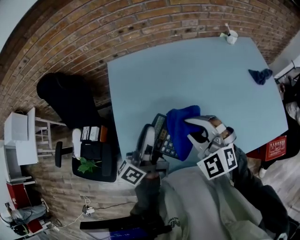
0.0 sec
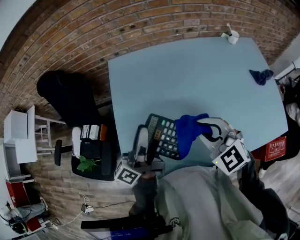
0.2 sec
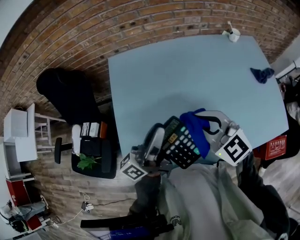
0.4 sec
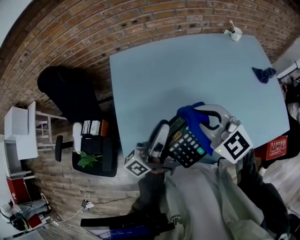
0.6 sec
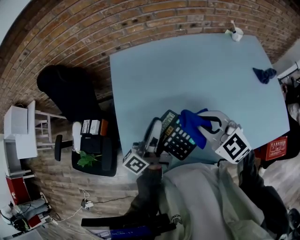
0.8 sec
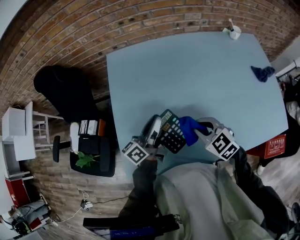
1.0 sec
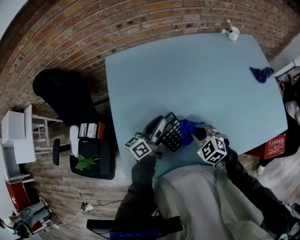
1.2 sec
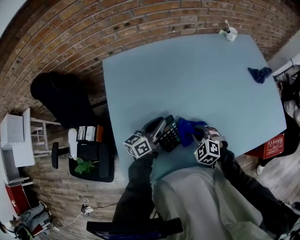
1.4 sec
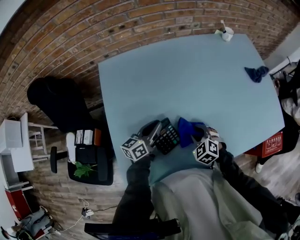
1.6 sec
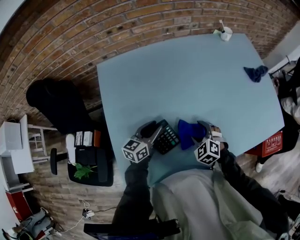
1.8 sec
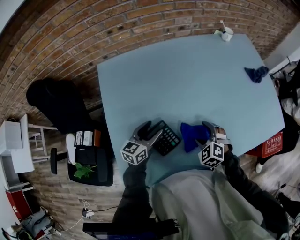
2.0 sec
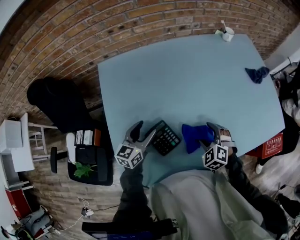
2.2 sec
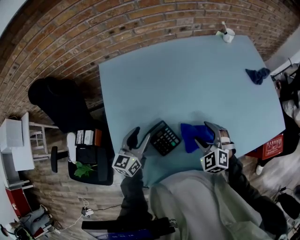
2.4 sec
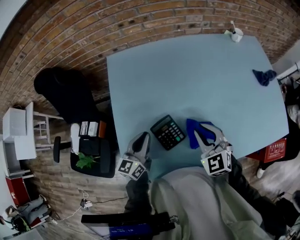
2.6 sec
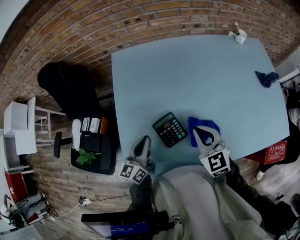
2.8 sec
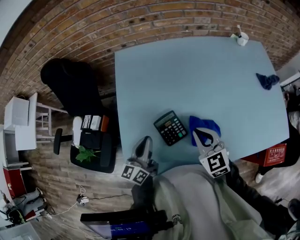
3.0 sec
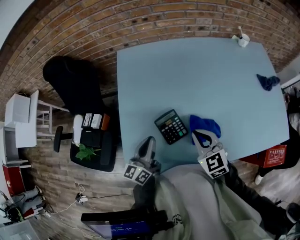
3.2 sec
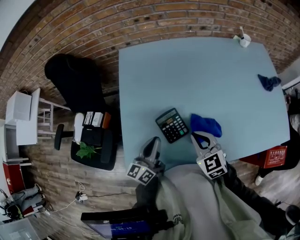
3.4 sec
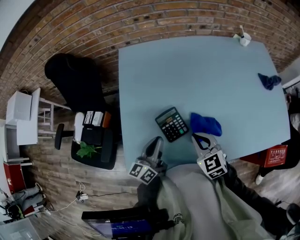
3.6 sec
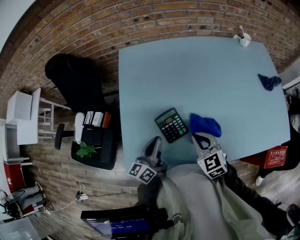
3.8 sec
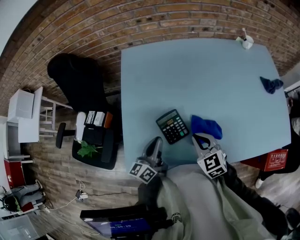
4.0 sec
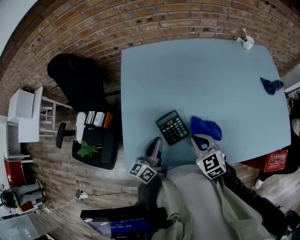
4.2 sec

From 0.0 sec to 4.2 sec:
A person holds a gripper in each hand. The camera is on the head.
From 0.0 sec to 1.4 sec: The two grippers go roughly 20 cm downward. The left gripper swivels roughly 30 degrees, while the right gripper changes its angle by about 30 degrees.
From 1.4 sec to 2.8 sec: The right gripper moves upward, some 15 cm, turns by roughly 40 degrees, and opens, then closes again; the left gripper is displaced backward and to the left by approximately 15 cm, changes its angle by roughly 30 degrees, and opens, then closes again.
From 2.8 sec to 4.2 sec: The right gripper travels downward by roughly 5 cm.

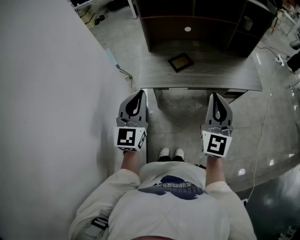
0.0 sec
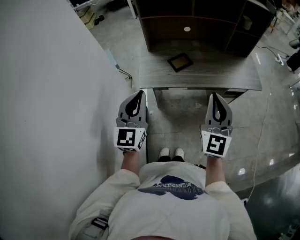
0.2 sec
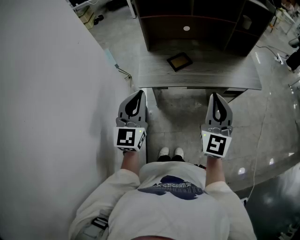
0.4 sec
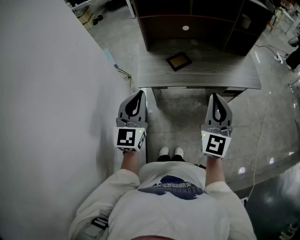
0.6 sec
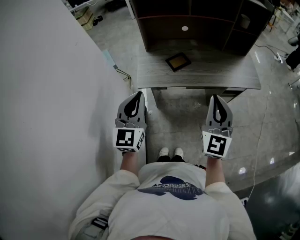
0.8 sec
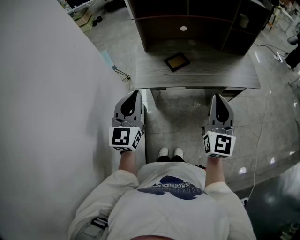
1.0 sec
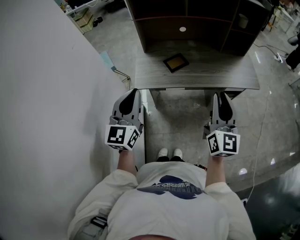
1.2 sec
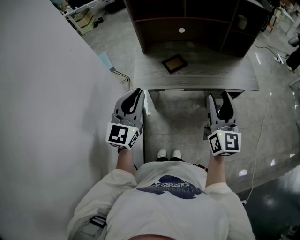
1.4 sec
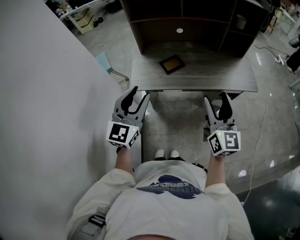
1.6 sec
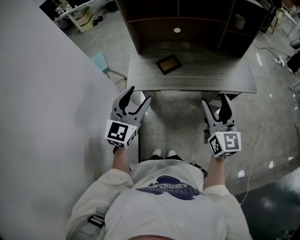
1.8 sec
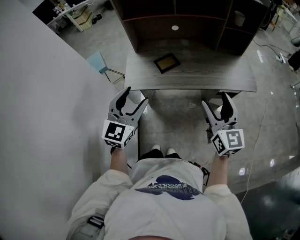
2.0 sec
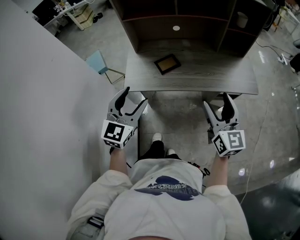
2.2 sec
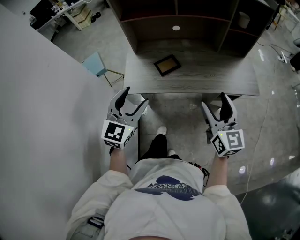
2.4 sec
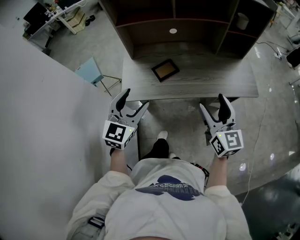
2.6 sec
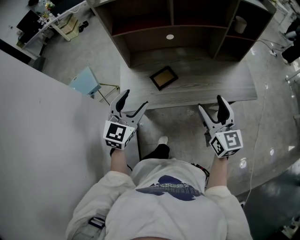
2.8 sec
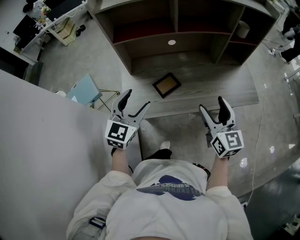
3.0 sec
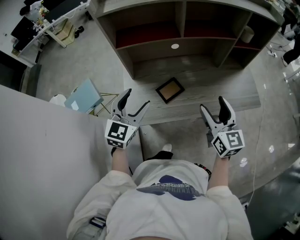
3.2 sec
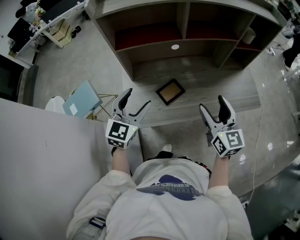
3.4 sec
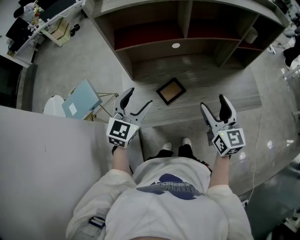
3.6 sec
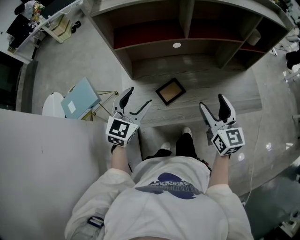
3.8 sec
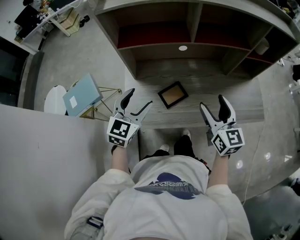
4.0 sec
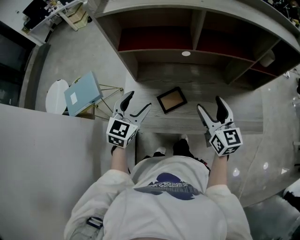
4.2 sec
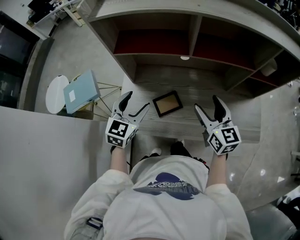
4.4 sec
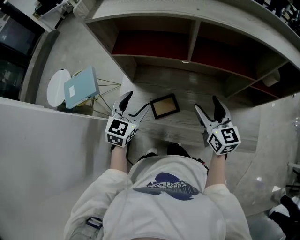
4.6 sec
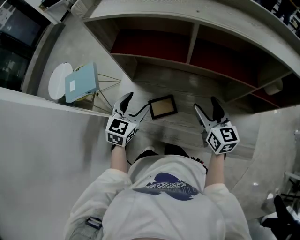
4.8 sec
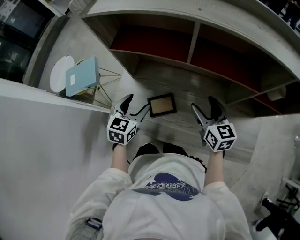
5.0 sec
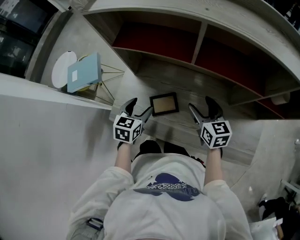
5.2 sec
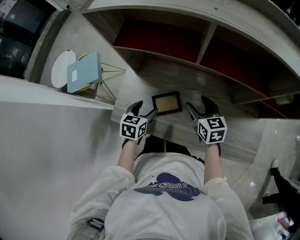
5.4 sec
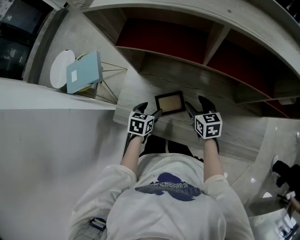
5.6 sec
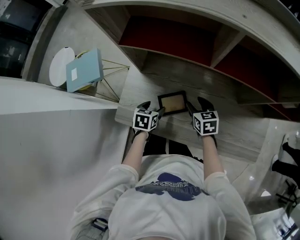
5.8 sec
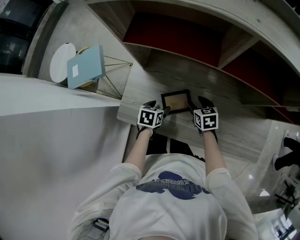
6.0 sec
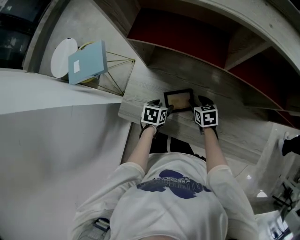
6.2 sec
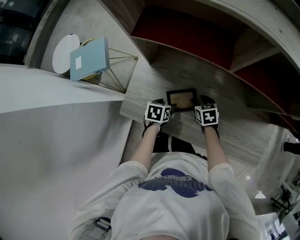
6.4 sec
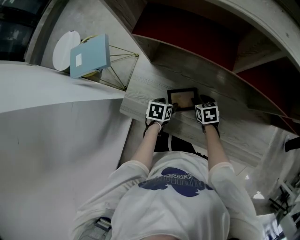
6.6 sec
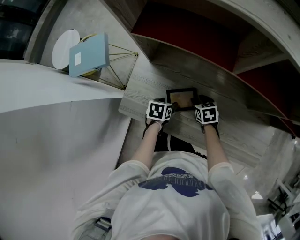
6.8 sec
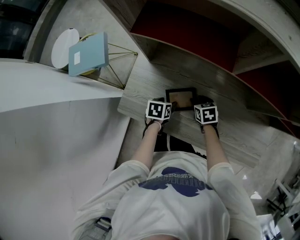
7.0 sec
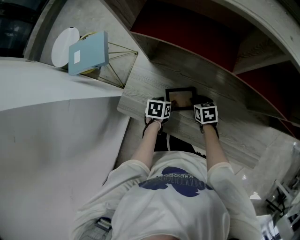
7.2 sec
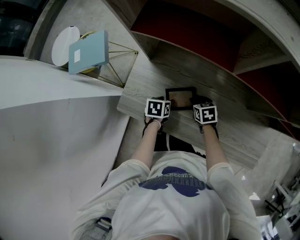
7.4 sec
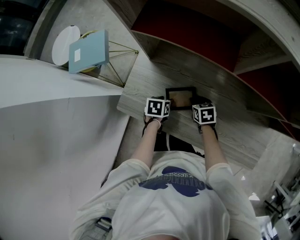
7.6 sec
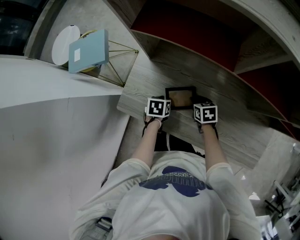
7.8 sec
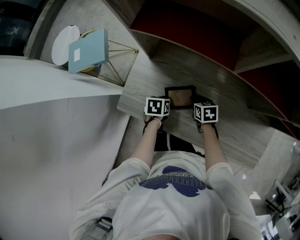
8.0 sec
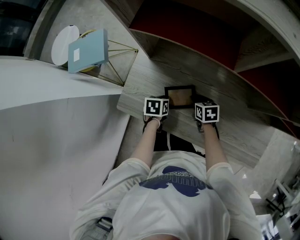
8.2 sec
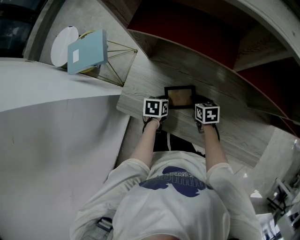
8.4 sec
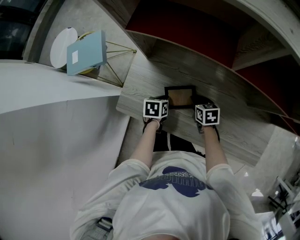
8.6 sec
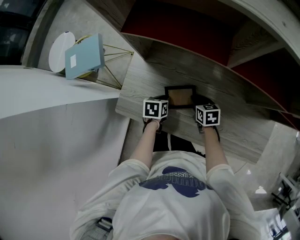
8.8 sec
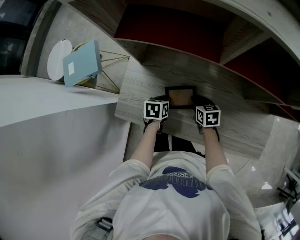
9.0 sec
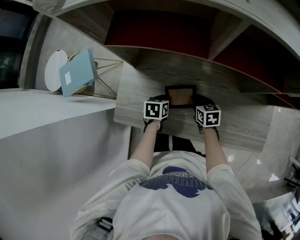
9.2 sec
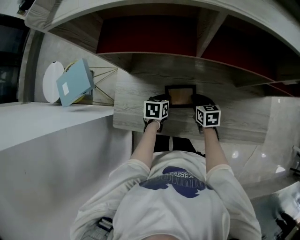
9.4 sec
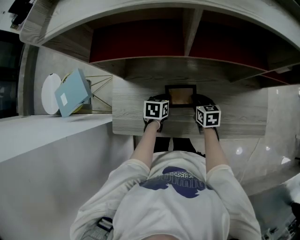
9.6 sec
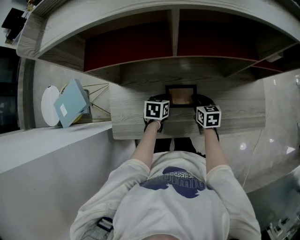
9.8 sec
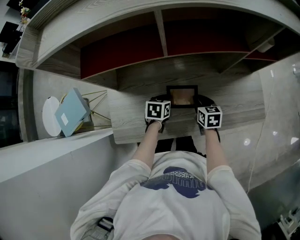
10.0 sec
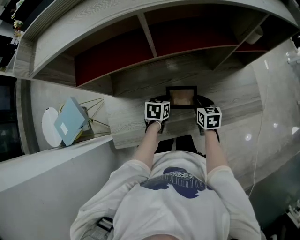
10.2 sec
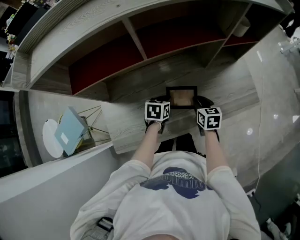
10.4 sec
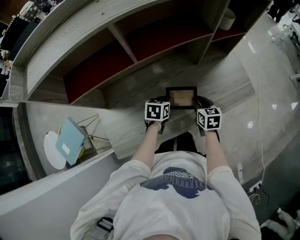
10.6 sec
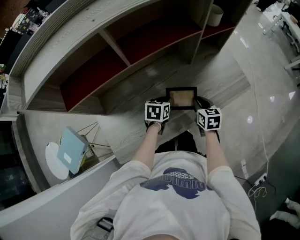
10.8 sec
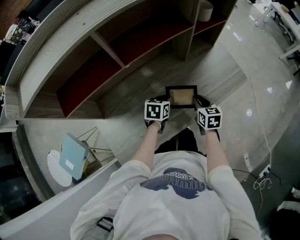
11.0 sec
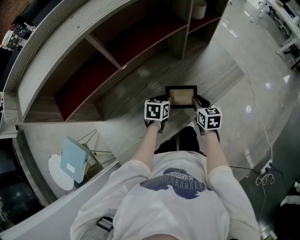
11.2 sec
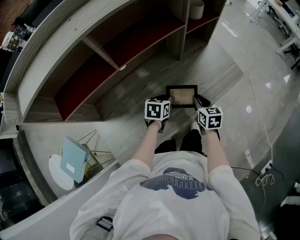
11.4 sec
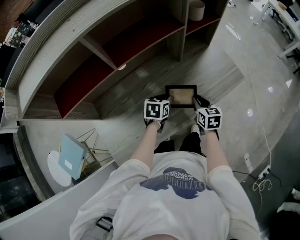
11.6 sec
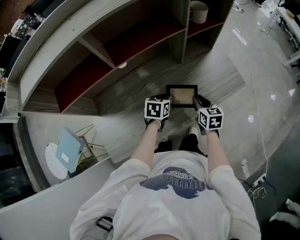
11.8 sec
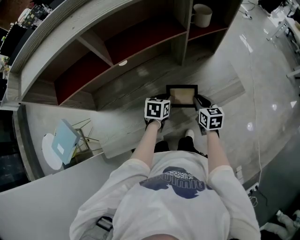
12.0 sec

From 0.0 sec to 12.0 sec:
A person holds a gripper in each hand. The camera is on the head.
From 0.0 sec to 1.6 sec: The two grippers go approximately 10 cm to the right. The right gripper changes its angle by about 20 degrees, and opens its fingers. The left gripper opens.
From 1.6 sec to 3.0 sec: The grippers both shift forward by some 20 cm. The left gripper opens.
From 3.0 sec to 4.4 sec: The right gripper shifts about 20 cm forward. The left gripper heads forward and downward, covering about 15 cm.
From 4.4 sec to 6.0 sec: Both grippers travel together downward, roughly 25 cm. The right gripper tilts its fingers some 40 degrees downward, while the left gripper angles its fingers downward, by approximately 30 degrees.
From 6.0 sec to 7.6 sec: The right gripper moves downward, some 5 cm, and closes up.
From 7.6 sec to 9.0 sec: The left gripper closes up.
From 9.0 sec to 10.4 sec: The right gripper moves about 20 cm, and swivels about 40 degrees, while the left gripper shifts by approximately 15 cm, and changes its angle by some 40 degrees.
From 10.4 sec to 12.0 sec: The two grippers go approximately 10 cm to the right.

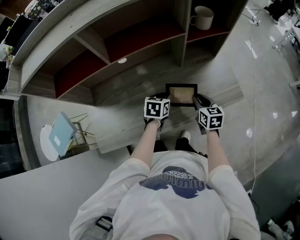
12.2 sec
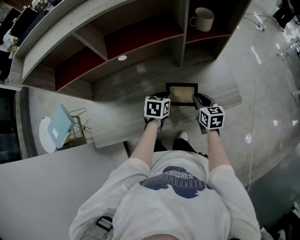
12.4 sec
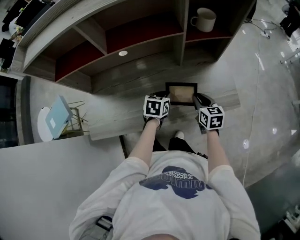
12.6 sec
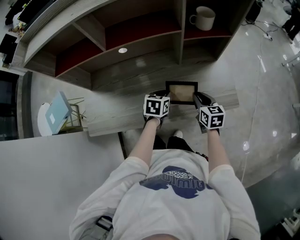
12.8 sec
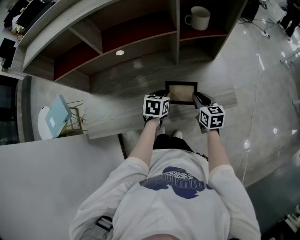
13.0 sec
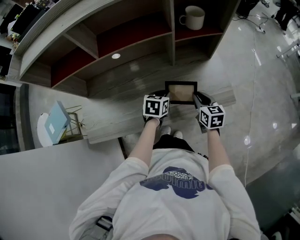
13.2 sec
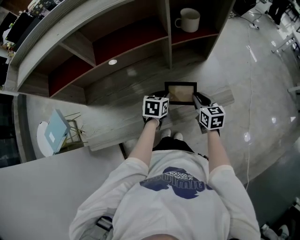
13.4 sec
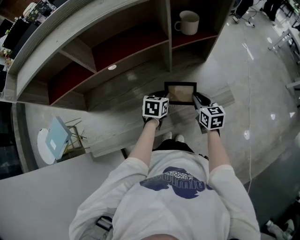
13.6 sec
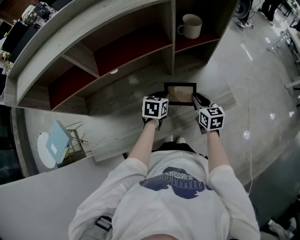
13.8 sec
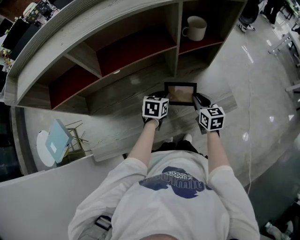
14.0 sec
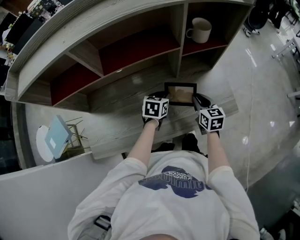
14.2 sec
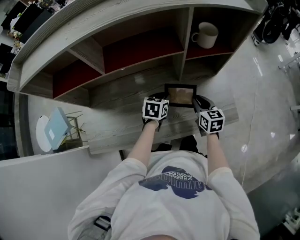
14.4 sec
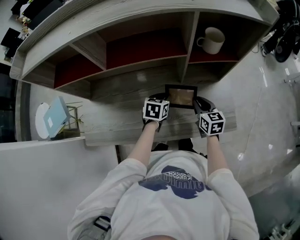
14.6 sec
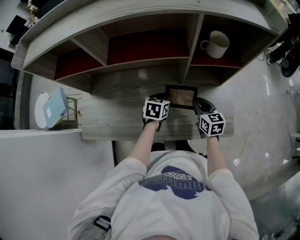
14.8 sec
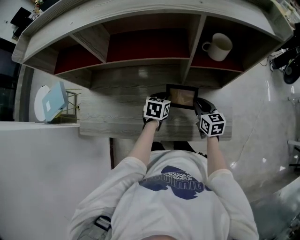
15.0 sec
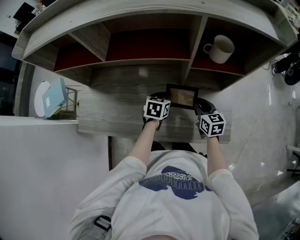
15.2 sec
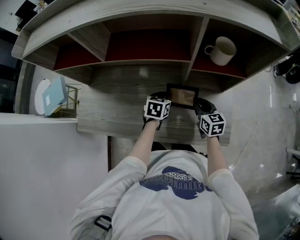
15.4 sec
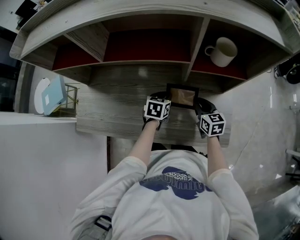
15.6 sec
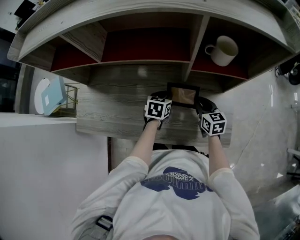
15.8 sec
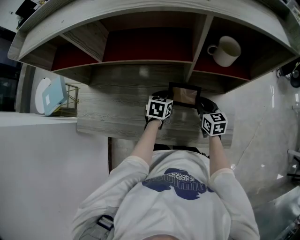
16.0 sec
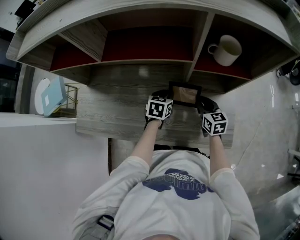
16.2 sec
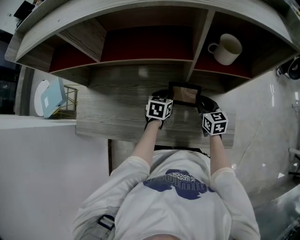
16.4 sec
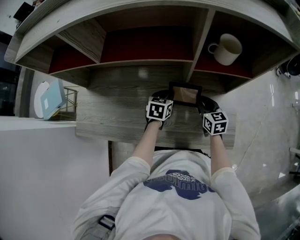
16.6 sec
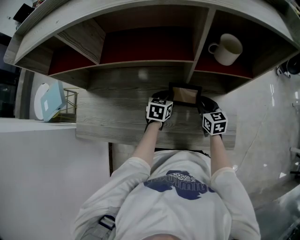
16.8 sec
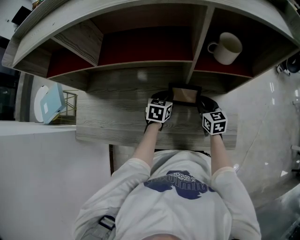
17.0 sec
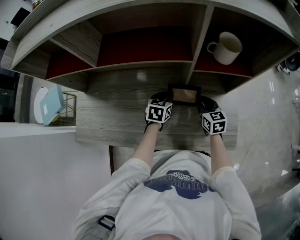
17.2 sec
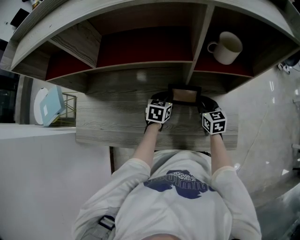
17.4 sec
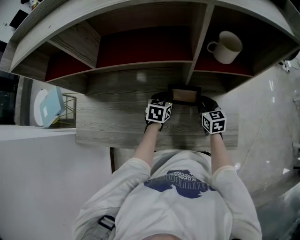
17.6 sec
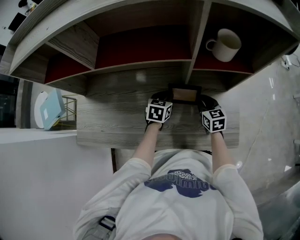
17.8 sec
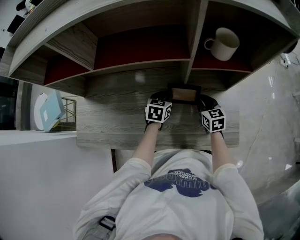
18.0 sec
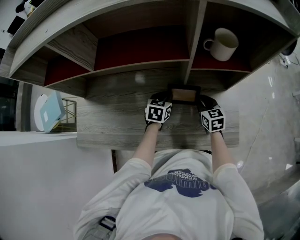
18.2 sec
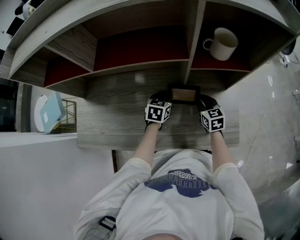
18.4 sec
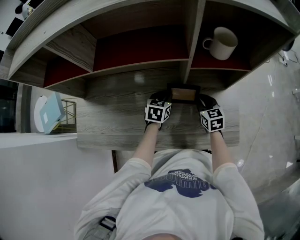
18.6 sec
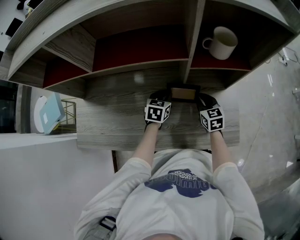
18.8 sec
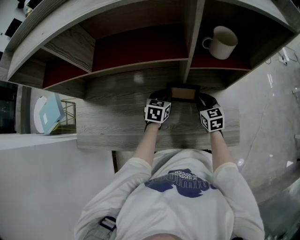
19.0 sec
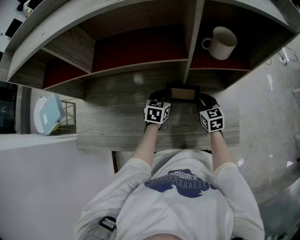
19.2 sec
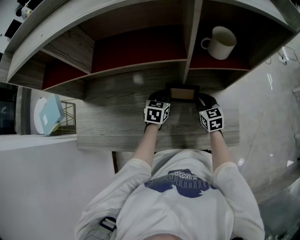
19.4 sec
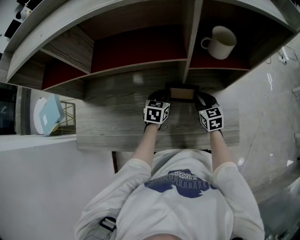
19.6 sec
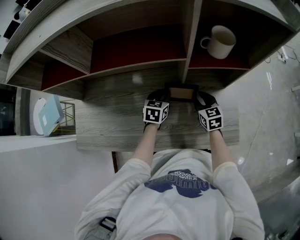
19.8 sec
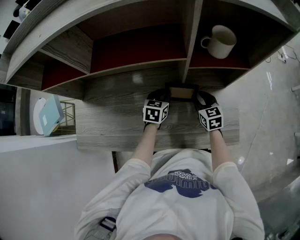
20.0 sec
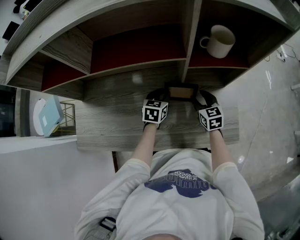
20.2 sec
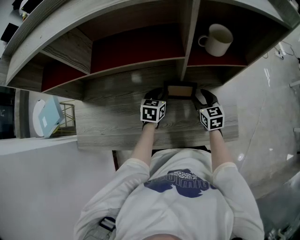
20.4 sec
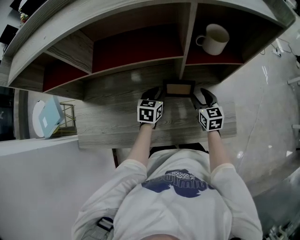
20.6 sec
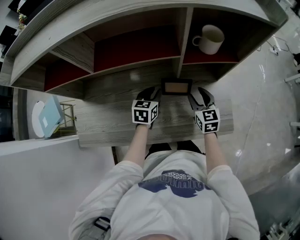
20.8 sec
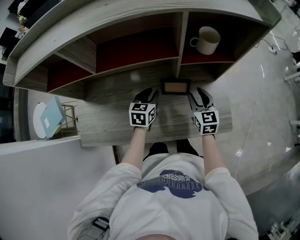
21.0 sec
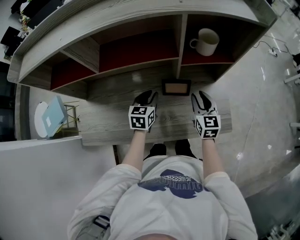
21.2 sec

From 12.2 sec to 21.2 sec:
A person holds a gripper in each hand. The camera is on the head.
From 12.2 sec to 13.8 sec: The left gripper heads forward, covering some 5 cm; the right gripper changes place by about 5 cm.
From 13.8 sec to 15.2 sec: The left gripper changes place by some 5 cm, and swivels roughly 20 degrees. Meanwhile the right gripper shifts some 10 cm forward, and rotates roughly 20 degrees.
From 15.2 sec to 16.6 sec: The right gripper shifts by about 5 cm.
From 16.6 sec to 18.2 sec: The grippers move only a little.
From 18.2 sec to 19.8 sec: Neither gripper changes place.
From 19.8 sec to 21.2 sec: The grippers both shift upward and backward by approximately 15 cm.
